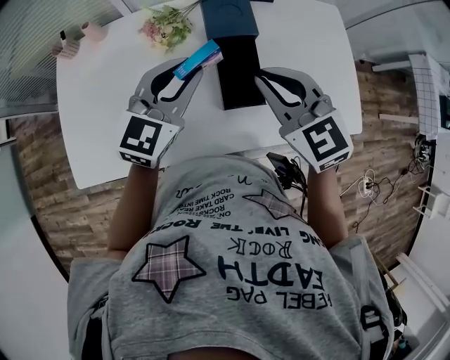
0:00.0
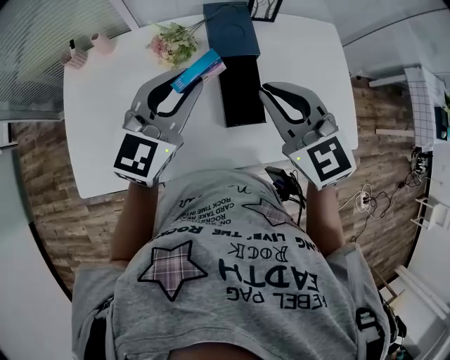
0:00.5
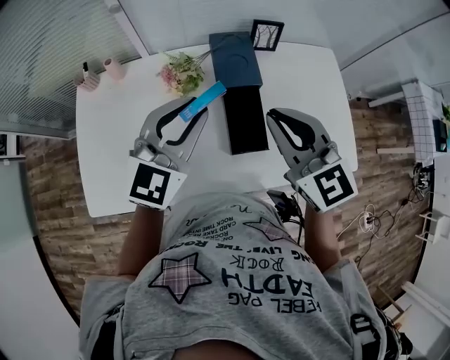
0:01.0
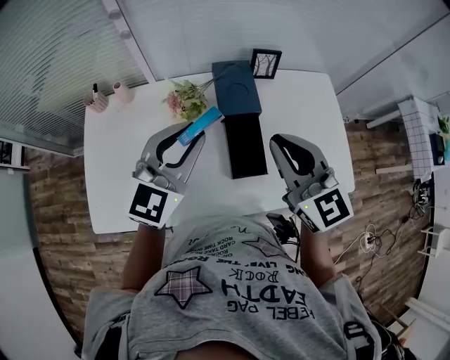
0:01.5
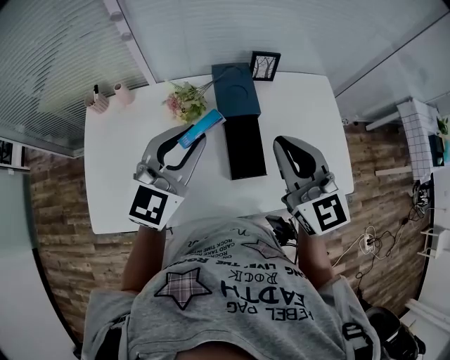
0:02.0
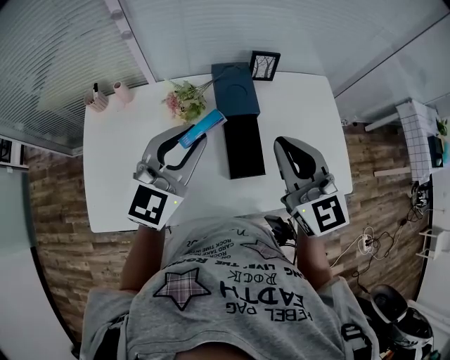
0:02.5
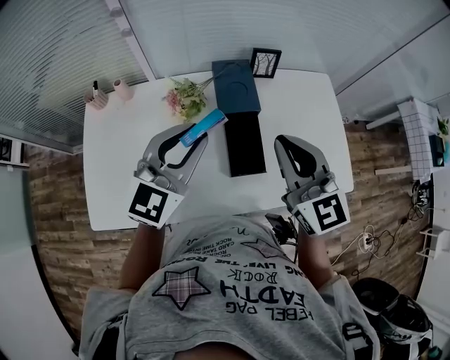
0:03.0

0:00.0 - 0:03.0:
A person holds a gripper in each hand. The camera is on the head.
0:00.0 - 0:01.5: Both grippers move upward, about 10 cm. The right gripper swivels about 20 degrees.
0:01.5 - 0:03.0: The grippers make only small movements.

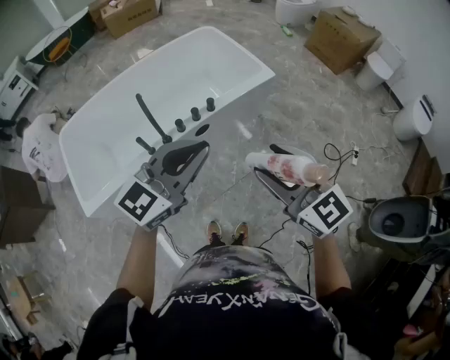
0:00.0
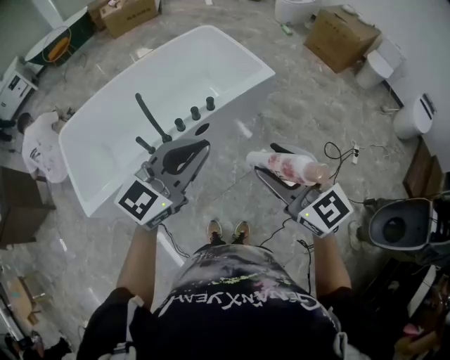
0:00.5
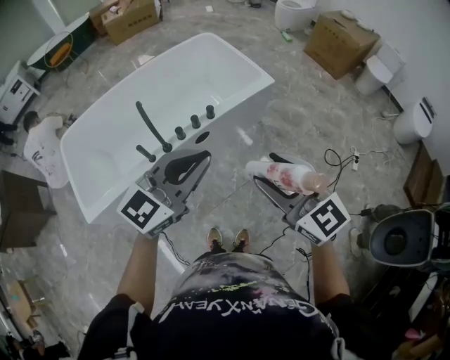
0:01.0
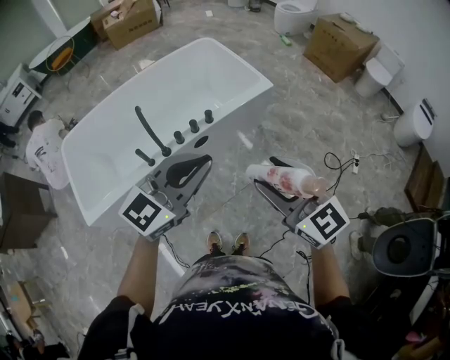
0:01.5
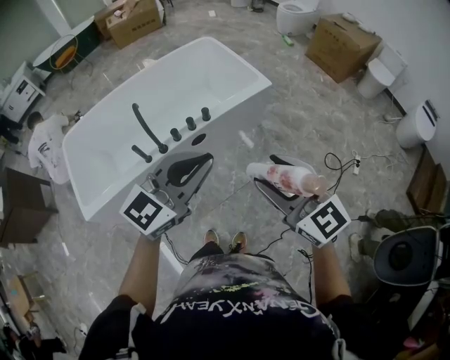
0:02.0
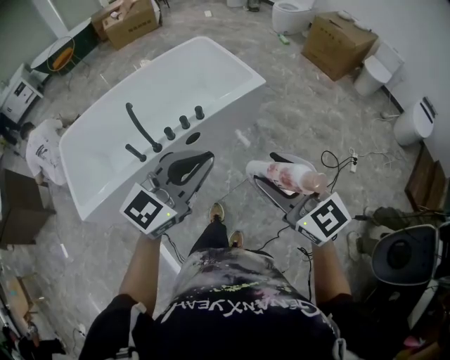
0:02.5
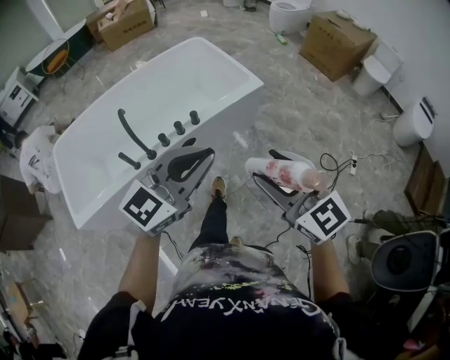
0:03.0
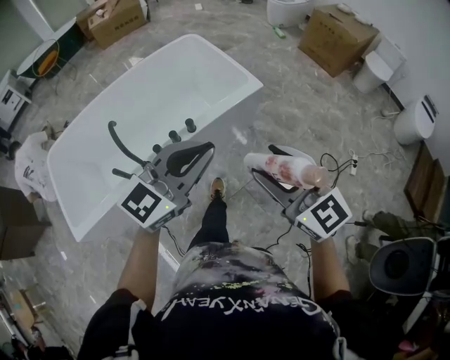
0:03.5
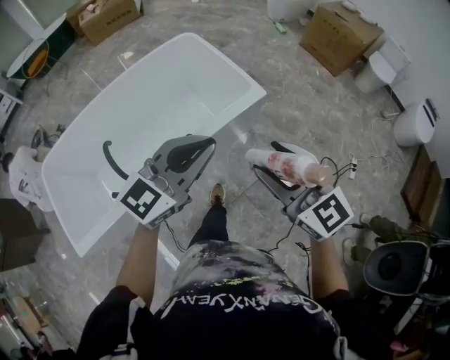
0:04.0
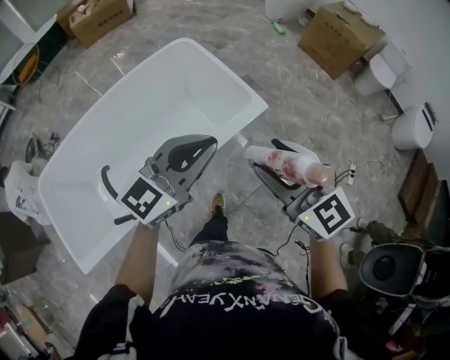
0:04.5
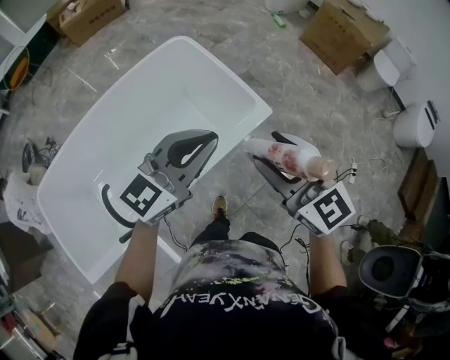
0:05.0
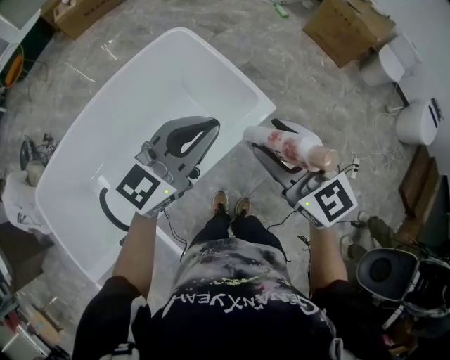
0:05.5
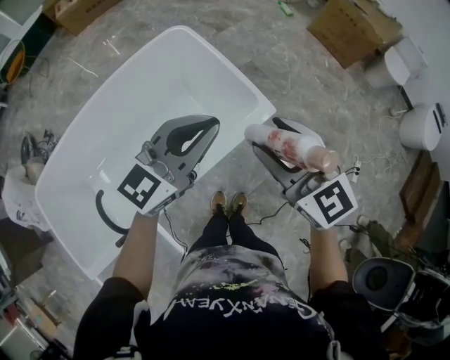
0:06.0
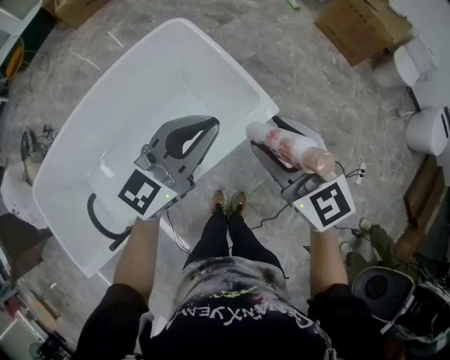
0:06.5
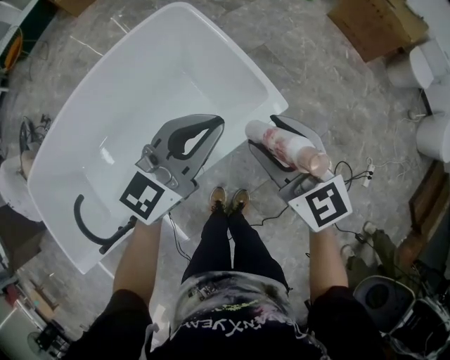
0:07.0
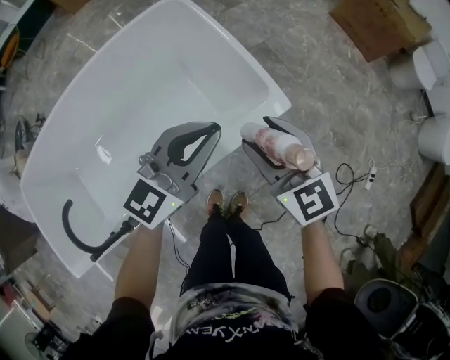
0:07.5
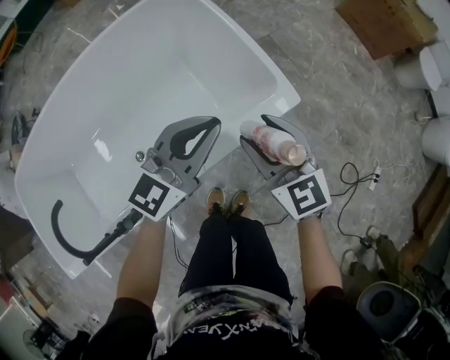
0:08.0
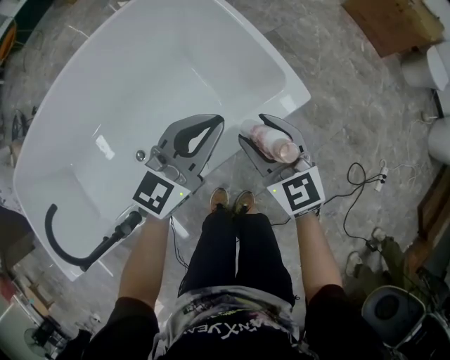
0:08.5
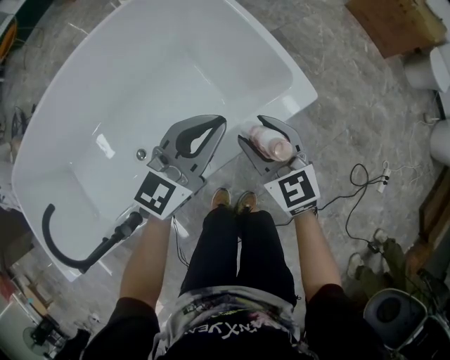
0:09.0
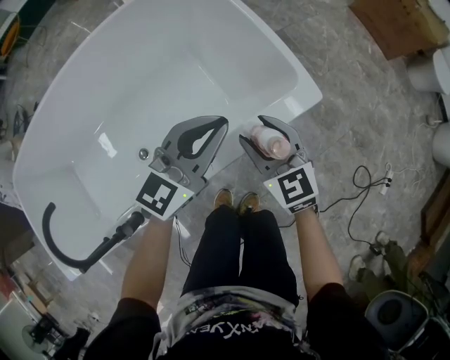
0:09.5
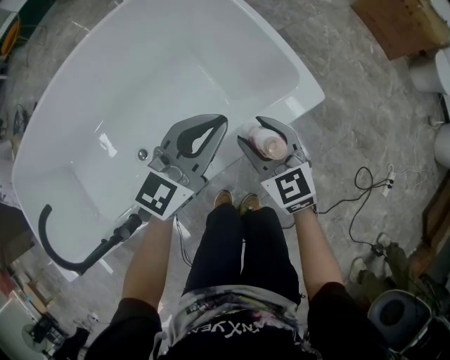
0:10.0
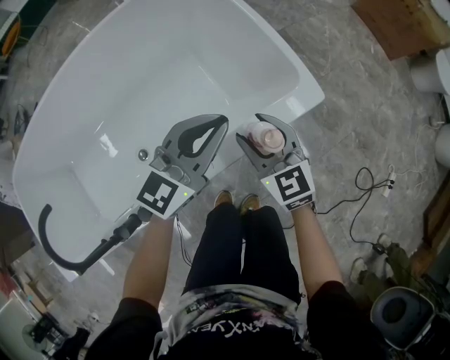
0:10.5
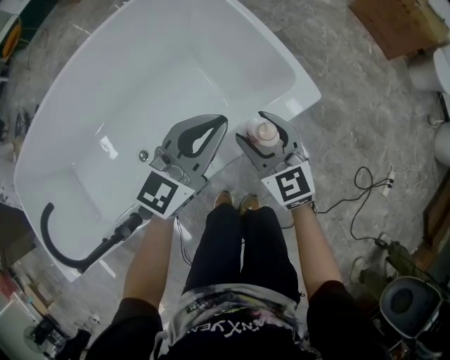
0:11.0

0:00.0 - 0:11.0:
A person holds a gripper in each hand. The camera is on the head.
0:00.0 - 0:02.0: Neither gripper changes place.
0:02.0 - 0:03.5: The right gripper moves forward, approximately 15 cm. The left gripper goes roughly 15 cm forward and to the right.
0:03.5 - 0:05.5: Both grippers are carried forward, some 40 cm.
0:05.5 - 0:07.5: The right gripper goes about 25 cm downward and forward. Meanwhile the left gripper moves downward, about 20 cm.
0:07.5 - 0:09.0: The two grippers go roughly 15 cm downward.
0:09.0 - 0:11.0: There are only small adjustments of the grippers.

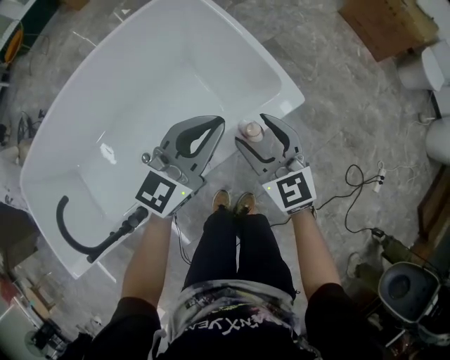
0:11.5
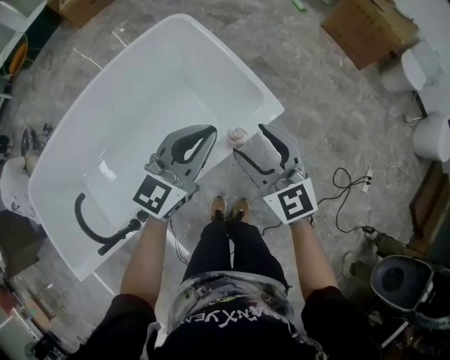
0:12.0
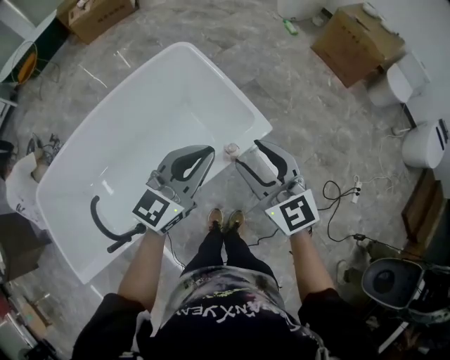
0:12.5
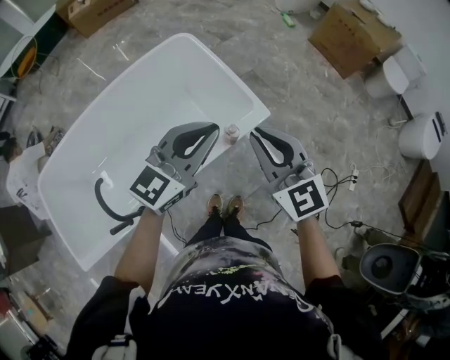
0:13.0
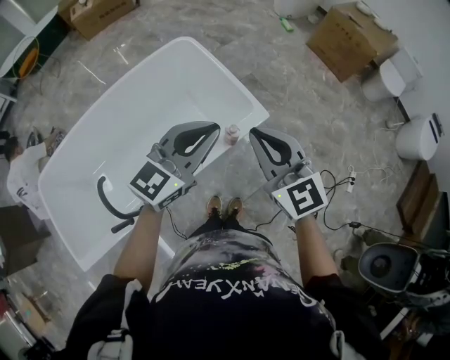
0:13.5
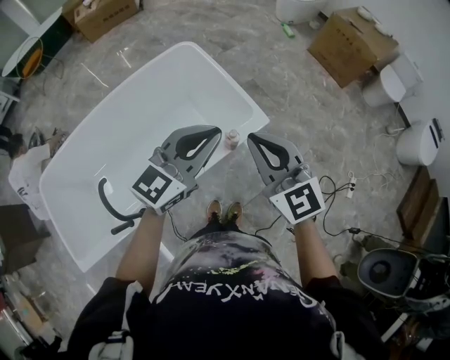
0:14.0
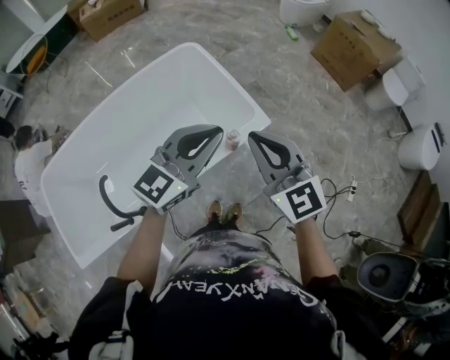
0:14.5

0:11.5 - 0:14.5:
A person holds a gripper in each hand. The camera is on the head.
0:11.5 - 0:13.0: Both grippers travel together upward, roughly 30 cm. The right gripper closes.
0:13.0 - 0:14.5: There are only small adjustments of the grippers.

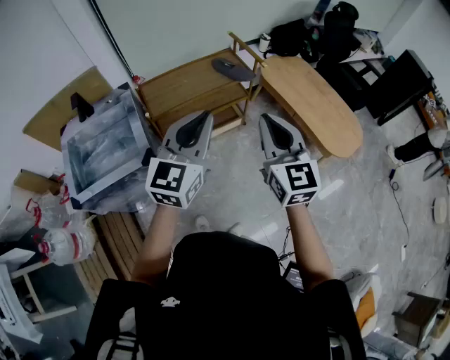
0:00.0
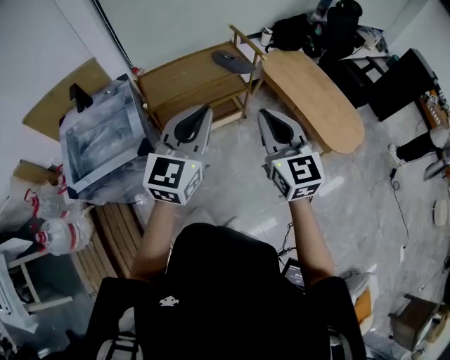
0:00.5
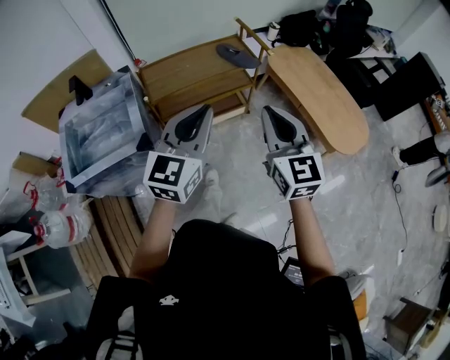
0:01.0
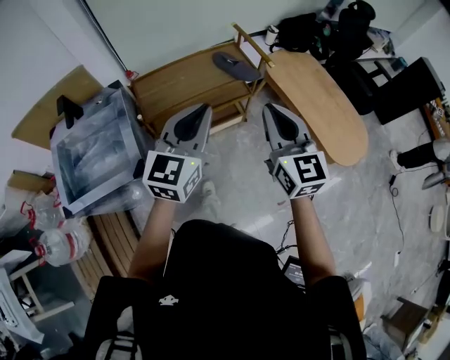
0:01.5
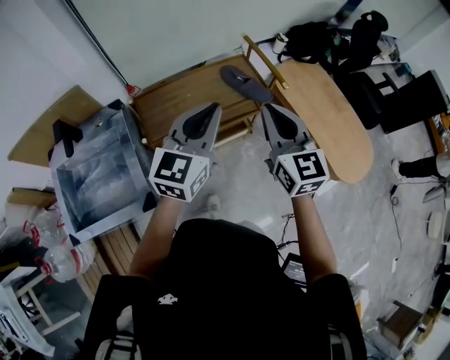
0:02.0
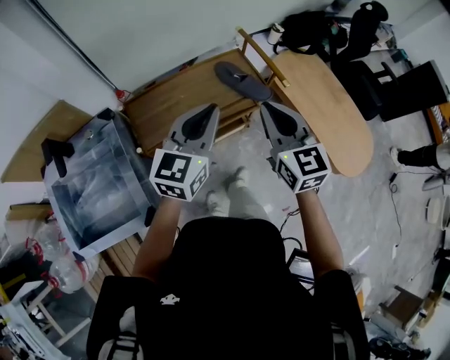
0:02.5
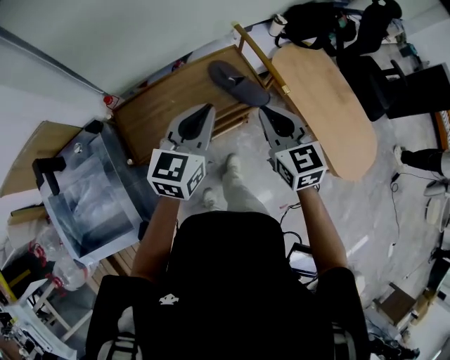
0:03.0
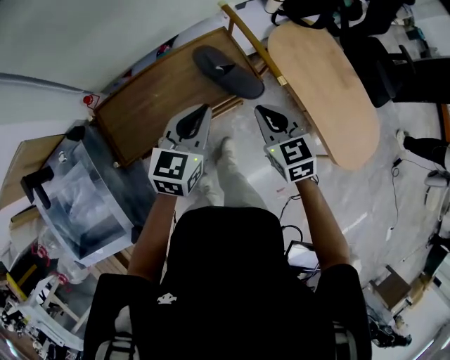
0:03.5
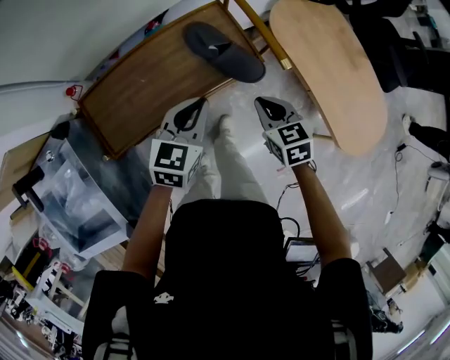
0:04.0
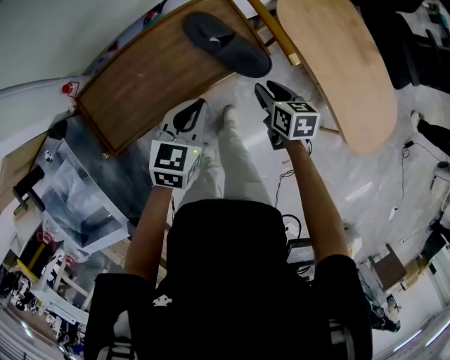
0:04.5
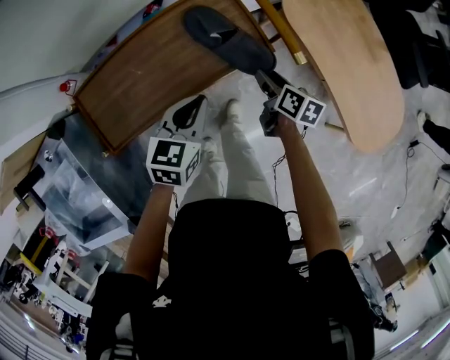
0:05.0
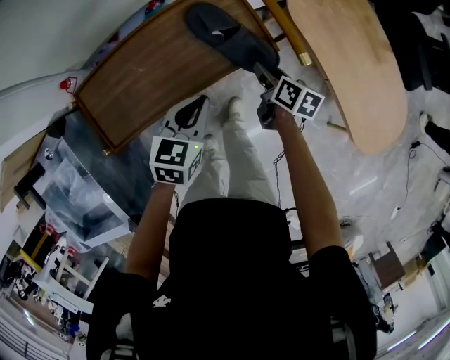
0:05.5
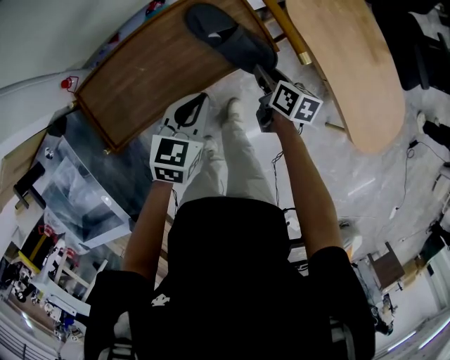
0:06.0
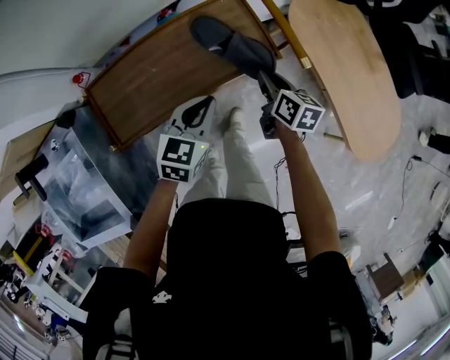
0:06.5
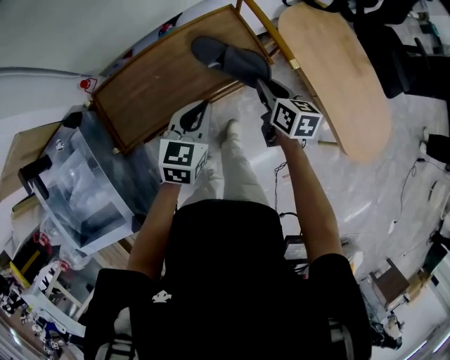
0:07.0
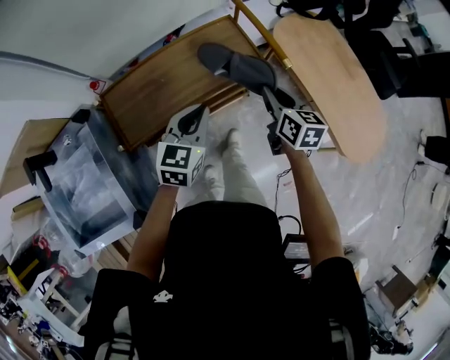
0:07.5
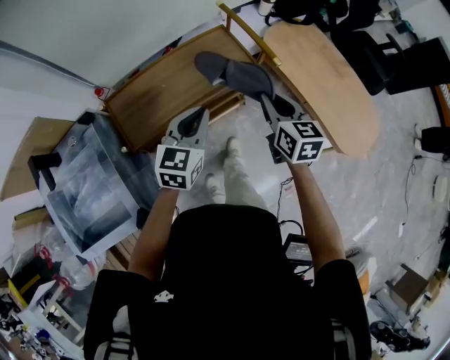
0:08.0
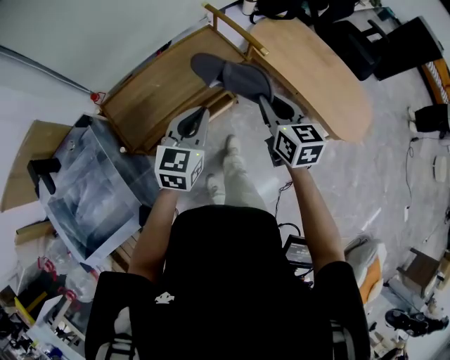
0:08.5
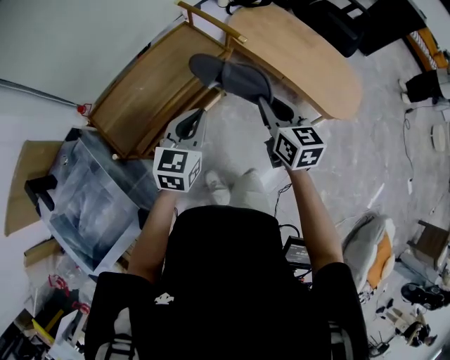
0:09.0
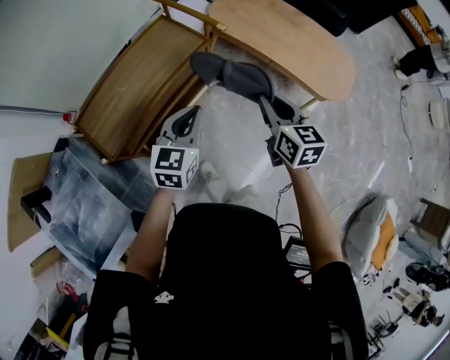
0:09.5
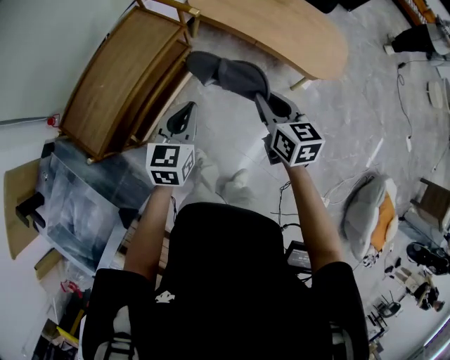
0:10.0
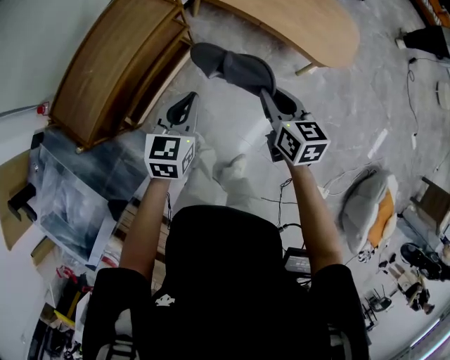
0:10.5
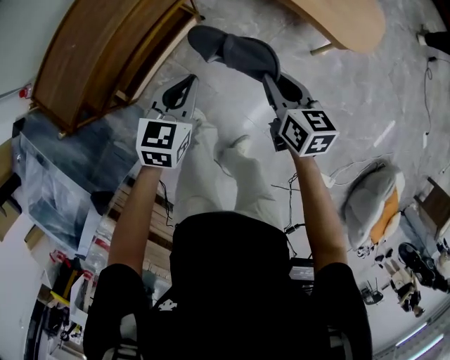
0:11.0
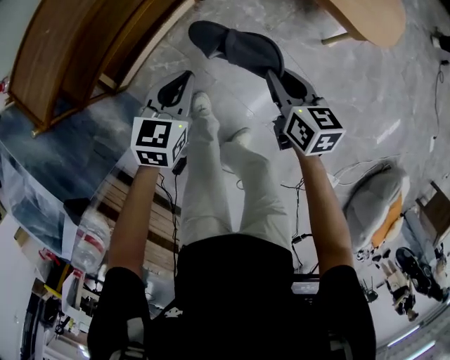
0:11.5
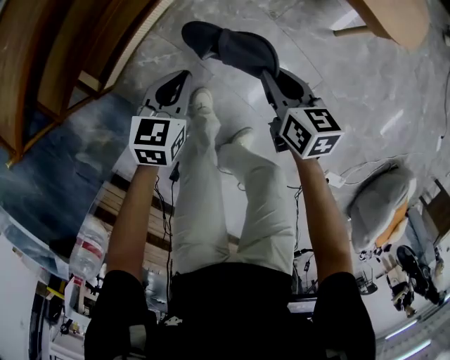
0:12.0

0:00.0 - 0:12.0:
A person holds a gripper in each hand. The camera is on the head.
0:00.0 - 0:02.0: Both grippers move forward, some 25 cm.
0:02.0 - 0:04.0: Both grippers move downward and forward, approximately 35 cm. The left gripper turns by approximately 30 degrees, while the right gripper tips its fingers downward by some 40 degrees.
0:04.0 - 0:06.0: The left gripper moves downward, approximately 5 cm. Meanwhile the right gripper heads downward and forward, covering about 15 cm, twists some 40 degrees clockwise, seen from behind, and opens its fingers.
0:06.0 - 0:08.0: The left gripper shifts some 20 cm upward and backward, while the right gripper travels upward and backward by approximately 30 cm, and swivels about 30 degrees.
0:08.0 - 0:10.0: The left gripper heads to the right, backward and downward, covering roughly 20 cm, while the right gripper moves to the right and backward, some 25 cm, and turns by roughly 20 degrees.
0:10.0 - 0:12.0: Both grippers travel together downward, roughly 40 cm.
